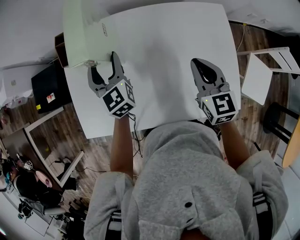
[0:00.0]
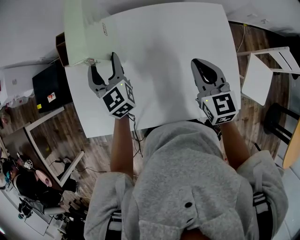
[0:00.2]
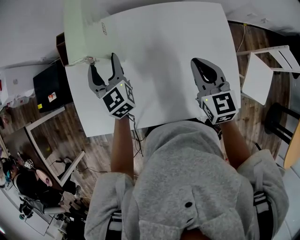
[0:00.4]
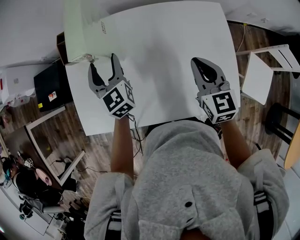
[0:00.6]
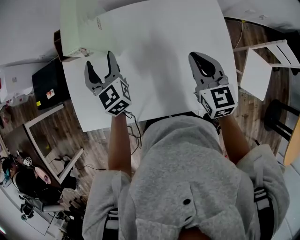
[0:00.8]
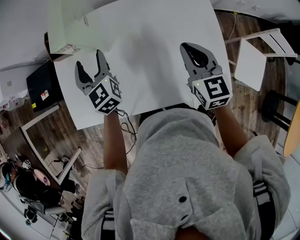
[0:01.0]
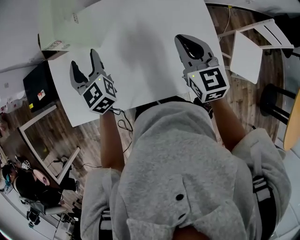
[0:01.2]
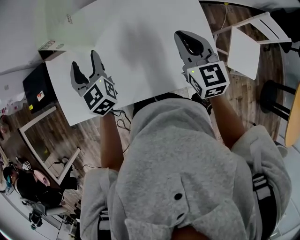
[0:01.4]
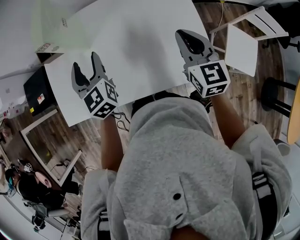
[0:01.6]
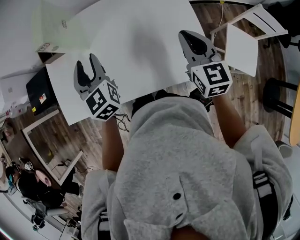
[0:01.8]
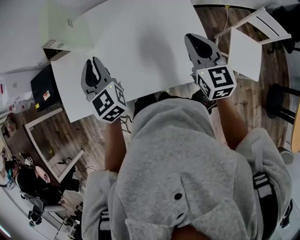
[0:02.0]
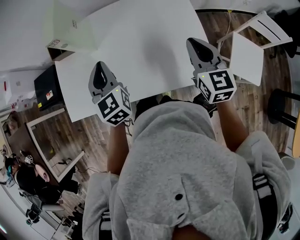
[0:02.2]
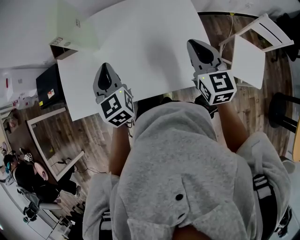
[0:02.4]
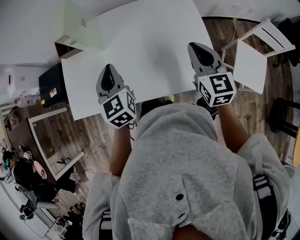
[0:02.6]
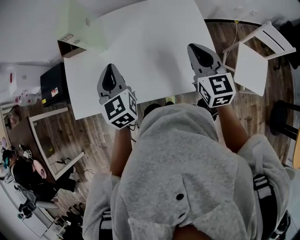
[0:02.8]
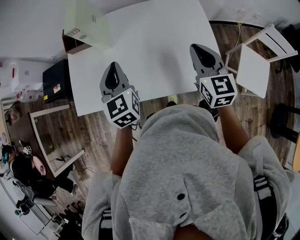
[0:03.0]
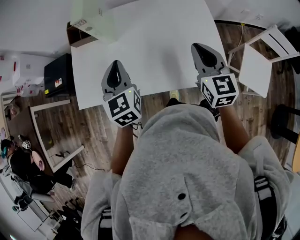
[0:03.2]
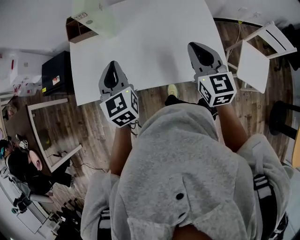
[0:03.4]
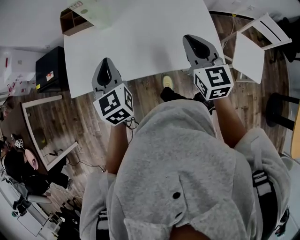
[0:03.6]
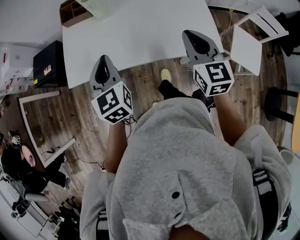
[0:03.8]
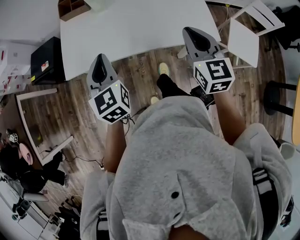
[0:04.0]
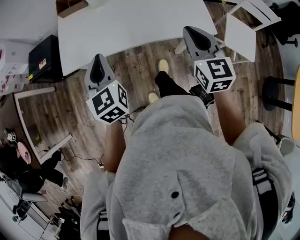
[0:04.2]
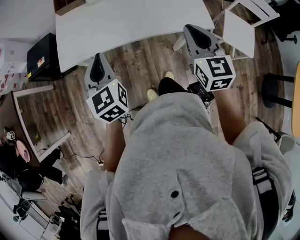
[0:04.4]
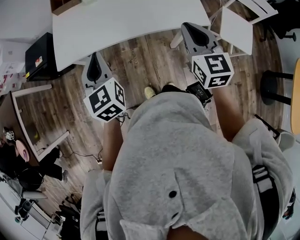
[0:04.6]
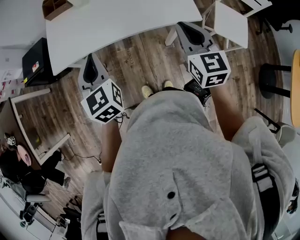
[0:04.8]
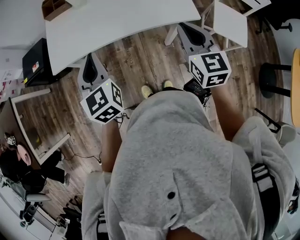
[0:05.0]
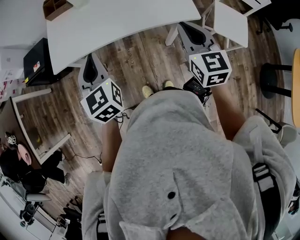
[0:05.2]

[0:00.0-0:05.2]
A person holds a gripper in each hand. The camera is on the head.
0:00.0 to 0:01.8: Both grippers move backward and to the right, about 15 cm. The left gripper closes its fingers.
0:01.8 to 0:03.4: The left gripper is displaced backward by about 10 cm, and closes its fingers. Meanwhile the right gripper goes some 10 cm to the left and backward.
0:03.4 to 0:05.2: Both grippers travel together backward, roughly 20 cm.

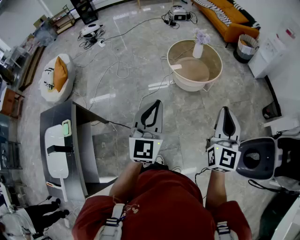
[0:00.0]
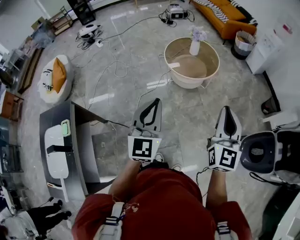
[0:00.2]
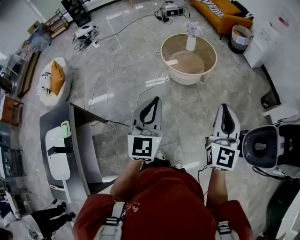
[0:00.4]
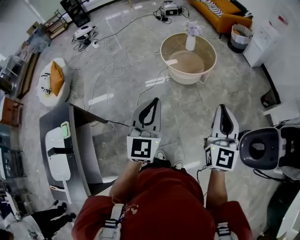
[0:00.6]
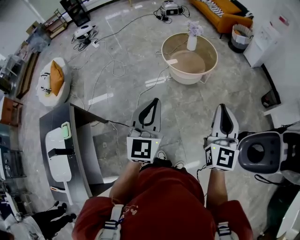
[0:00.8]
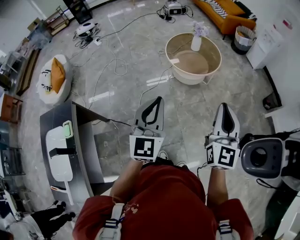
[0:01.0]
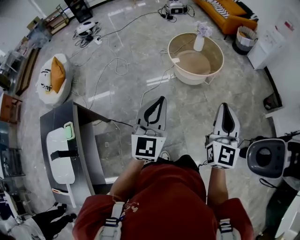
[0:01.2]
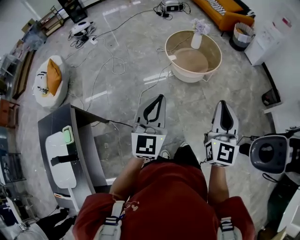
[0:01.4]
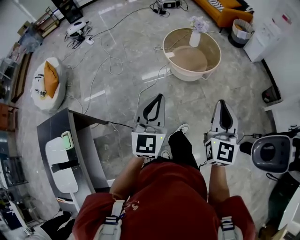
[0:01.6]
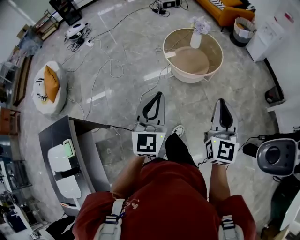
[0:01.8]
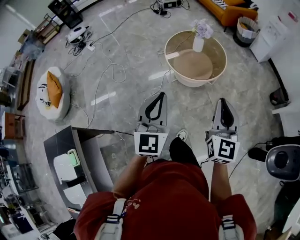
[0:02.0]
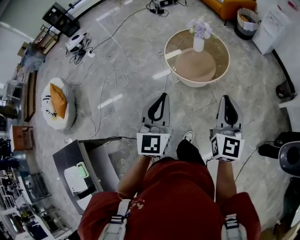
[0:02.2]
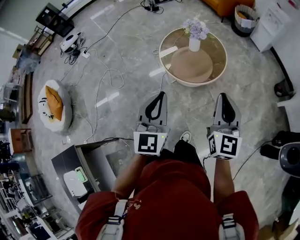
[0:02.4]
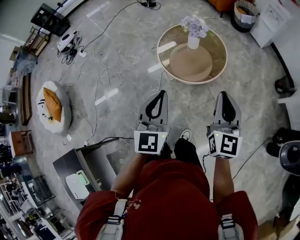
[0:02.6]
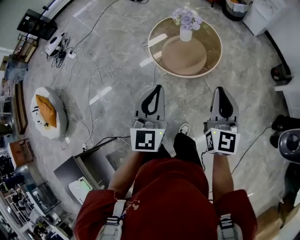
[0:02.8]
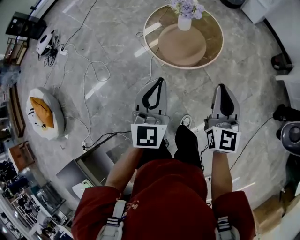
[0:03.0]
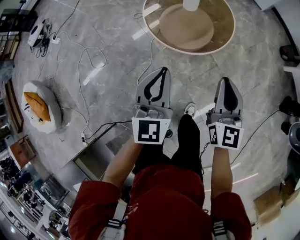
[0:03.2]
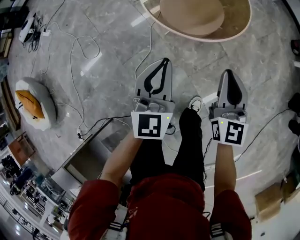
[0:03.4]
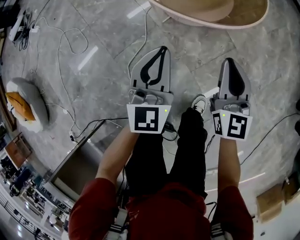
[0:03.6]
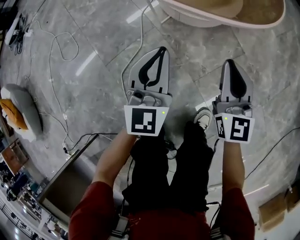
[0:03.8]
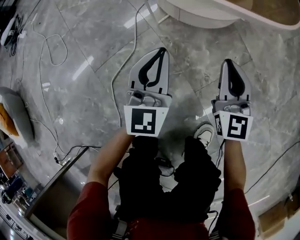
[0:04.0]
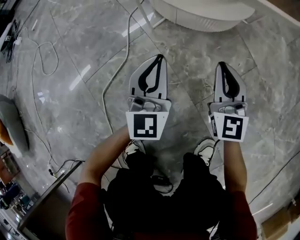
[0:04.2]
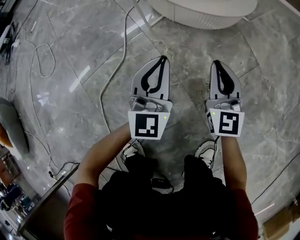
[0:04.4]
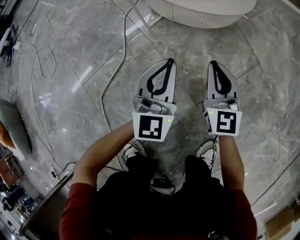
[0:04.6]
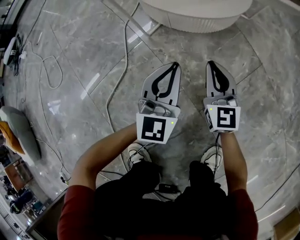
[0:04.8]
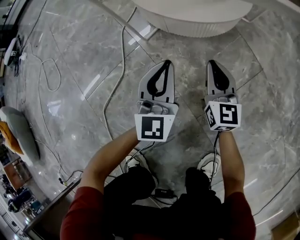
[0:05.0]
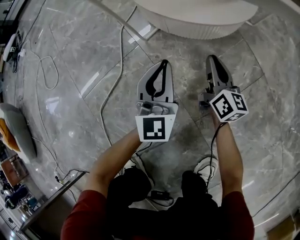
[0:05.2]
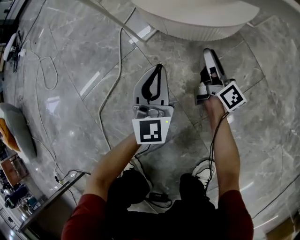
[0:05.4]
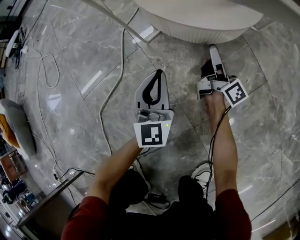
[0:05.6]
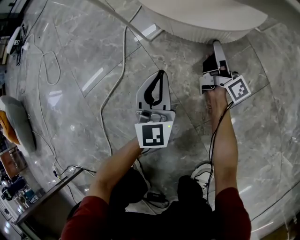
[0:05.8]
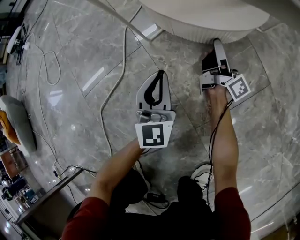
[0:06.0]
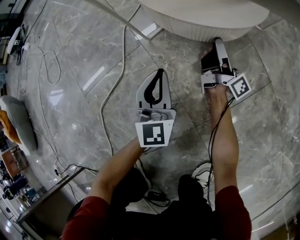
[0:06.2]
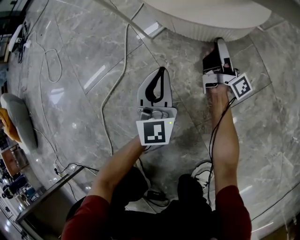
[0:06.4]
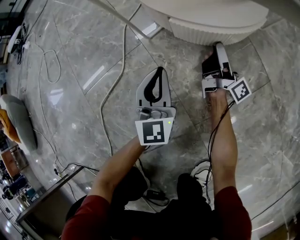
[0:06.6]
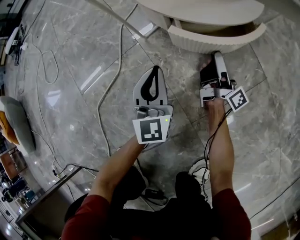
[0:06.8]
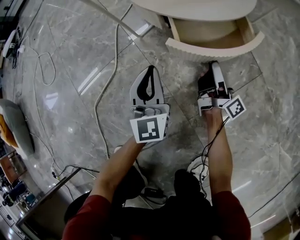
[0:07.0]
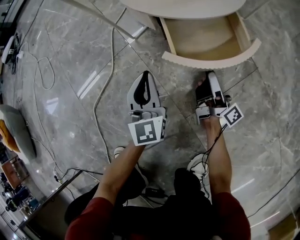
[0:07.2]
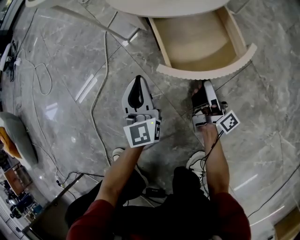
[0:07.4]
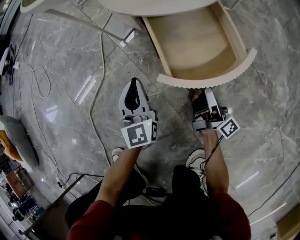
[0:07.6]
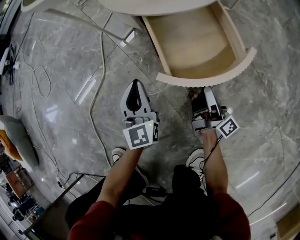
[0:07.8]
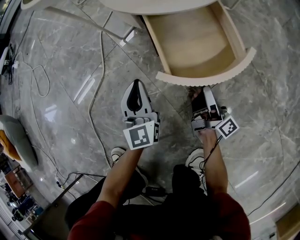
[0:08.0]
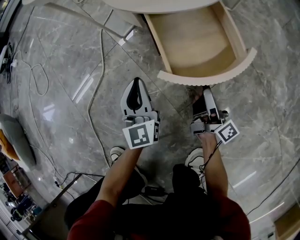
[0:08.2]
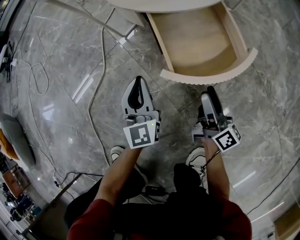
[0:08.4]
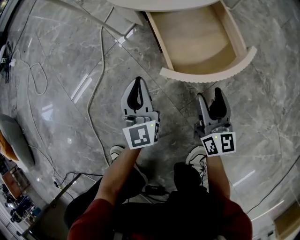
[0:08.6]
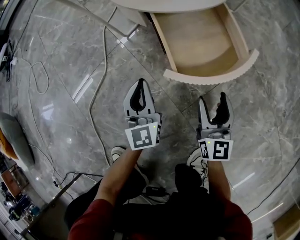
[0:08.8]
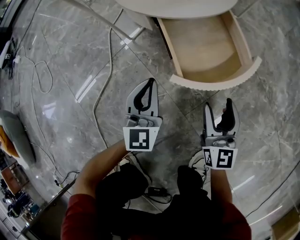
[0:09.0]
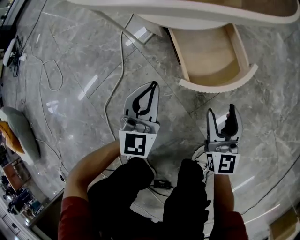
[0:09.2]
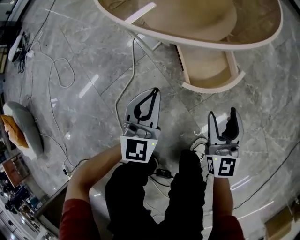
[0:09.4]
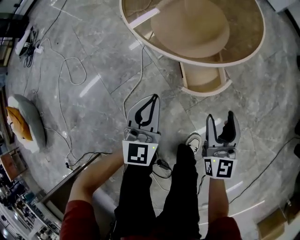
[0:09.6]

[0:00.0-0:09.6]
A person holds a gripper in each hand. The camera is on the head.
0:00.0 to 0:01.6: The left gripper goes approximately 10 cm forward and to the left, while the right gripper heads to the left, covering about 10 cm.
0:01.6 to 0:03.2: The two grippers go roughly 40 cm forward and downward.
0:03.2 to 0:04.8: Both grippers move downward, some 70 cm.
0:04.8 to 0:06.4: The right gripper heads forward and downward, covering about 15 cm, rotates around the line of its fingers by some 80 degrees, clockwise from behind, and opens; the left gripper is displaced downward by some 5 cm, and turns by roughly 20 degrees.
0:06.4 to 0:08.0: The right gripper shifts roughly 20 cm backward. The left gripper heads backward, covering some 5 cm.
0:08.0 to 0:09.6: Both grippers travel together upward, approximately 40 cm. The right gripper twists approximately 70 degrees counterclockwise, seen from behind, while the left gripper changes its angle by some 20 degrees.

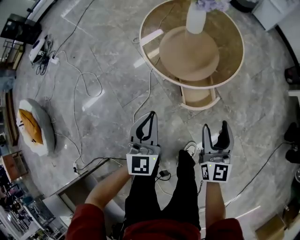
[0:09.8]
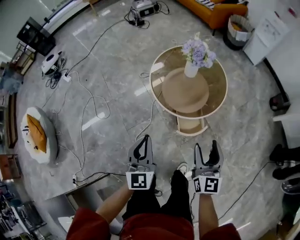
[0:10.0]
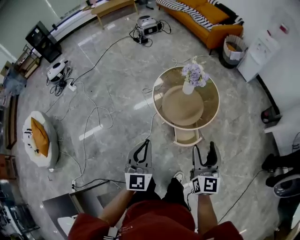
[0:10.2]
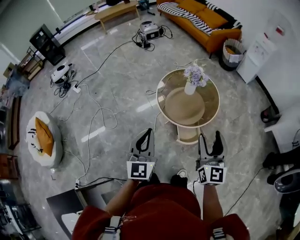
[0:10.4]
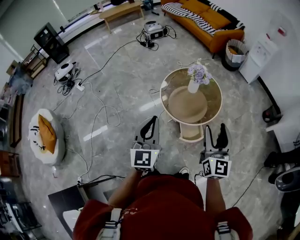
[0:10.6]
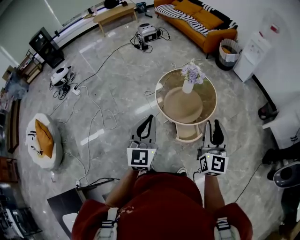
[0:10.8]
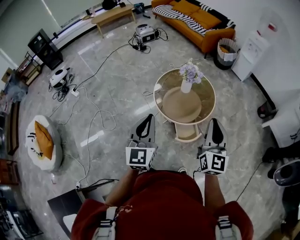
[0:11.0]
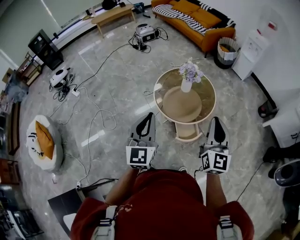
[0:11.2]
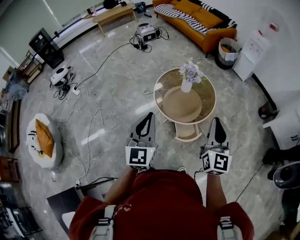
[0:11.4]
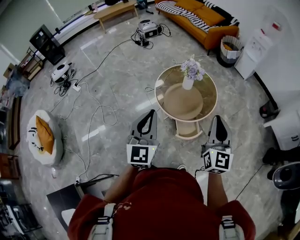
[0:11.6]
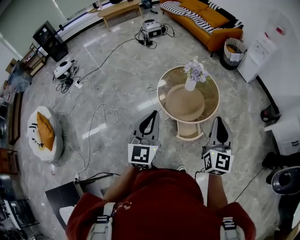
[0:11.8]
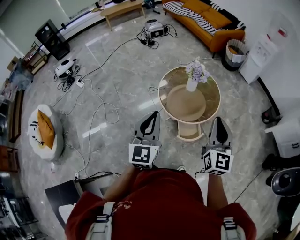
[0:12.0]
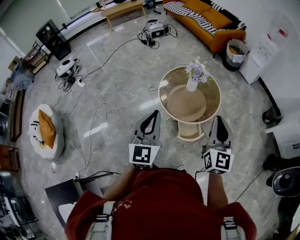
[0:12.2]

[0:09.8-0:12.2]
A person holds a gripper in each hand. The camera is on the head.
0:09.8 to 0:11.0: The two grippers go about 40 cm upward. The right gripper closes.
0:11.0 to 0:12.2: There are only small adjustments of the grippers.

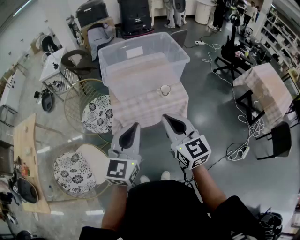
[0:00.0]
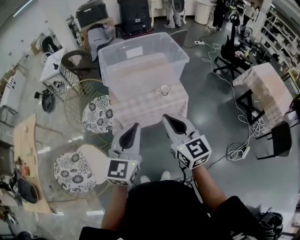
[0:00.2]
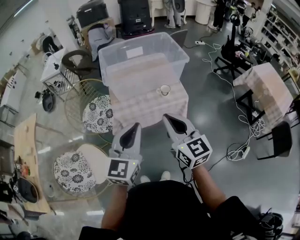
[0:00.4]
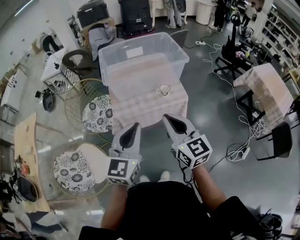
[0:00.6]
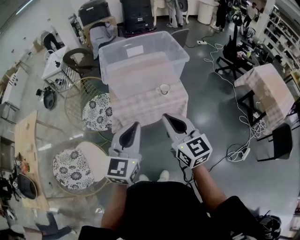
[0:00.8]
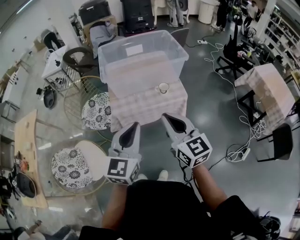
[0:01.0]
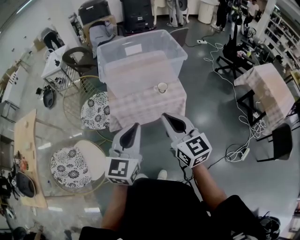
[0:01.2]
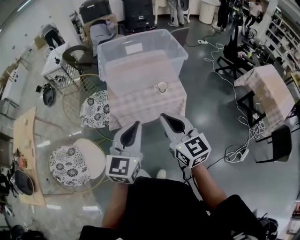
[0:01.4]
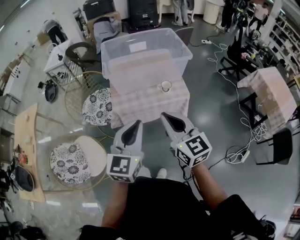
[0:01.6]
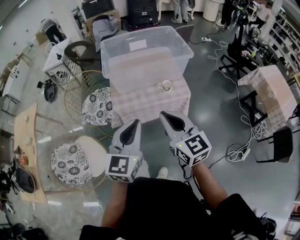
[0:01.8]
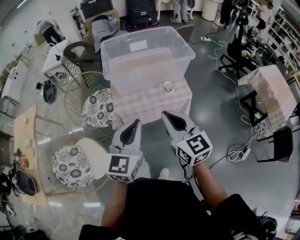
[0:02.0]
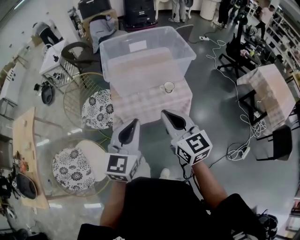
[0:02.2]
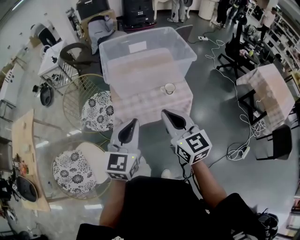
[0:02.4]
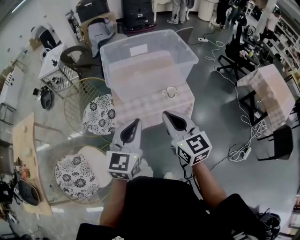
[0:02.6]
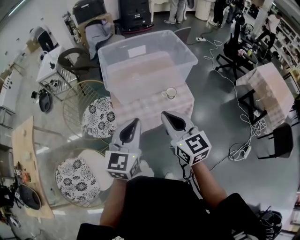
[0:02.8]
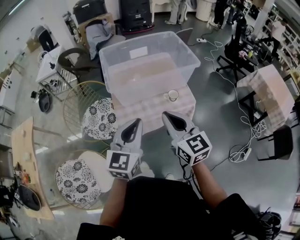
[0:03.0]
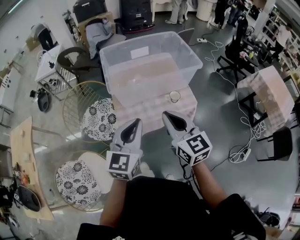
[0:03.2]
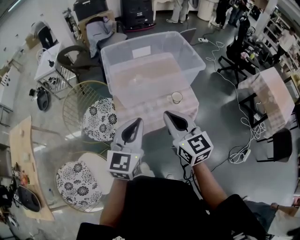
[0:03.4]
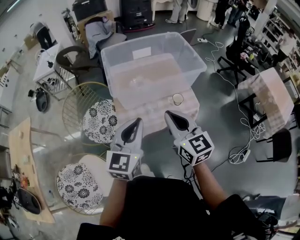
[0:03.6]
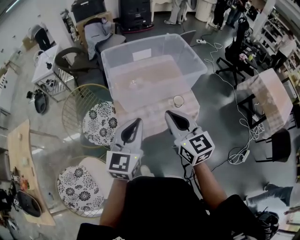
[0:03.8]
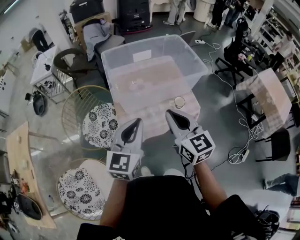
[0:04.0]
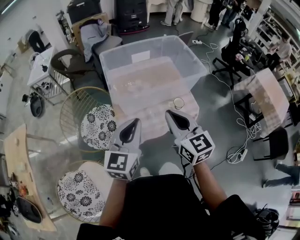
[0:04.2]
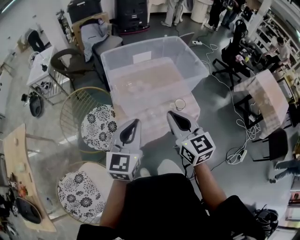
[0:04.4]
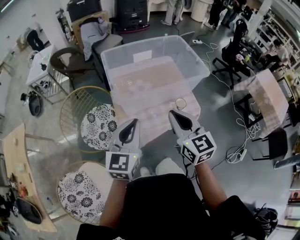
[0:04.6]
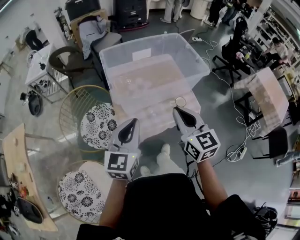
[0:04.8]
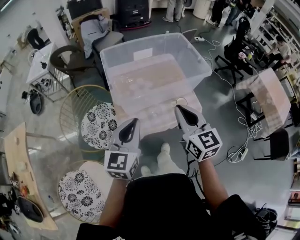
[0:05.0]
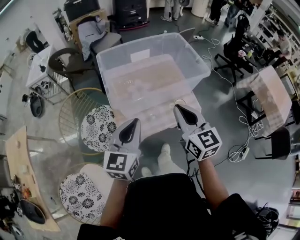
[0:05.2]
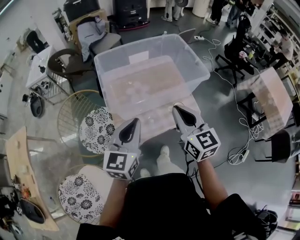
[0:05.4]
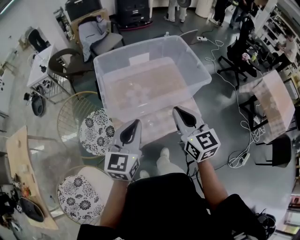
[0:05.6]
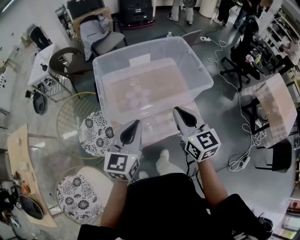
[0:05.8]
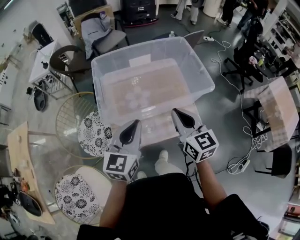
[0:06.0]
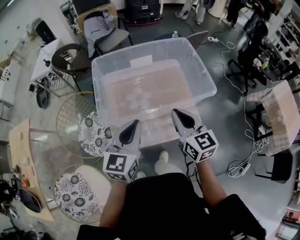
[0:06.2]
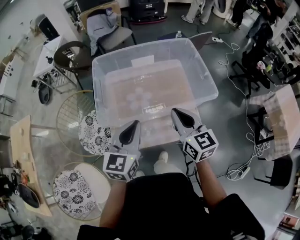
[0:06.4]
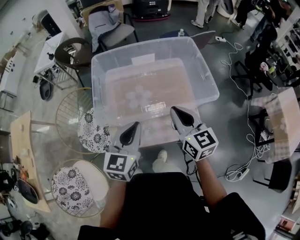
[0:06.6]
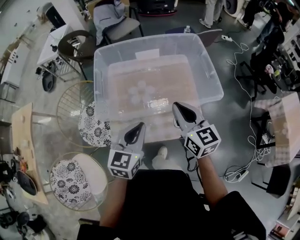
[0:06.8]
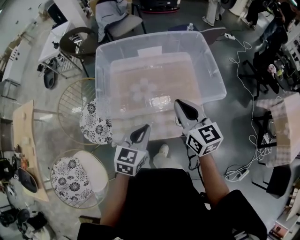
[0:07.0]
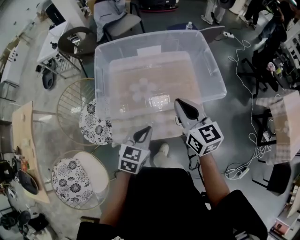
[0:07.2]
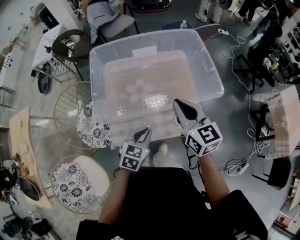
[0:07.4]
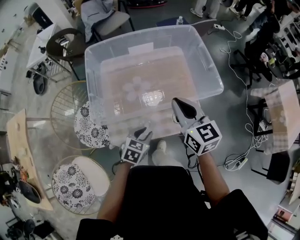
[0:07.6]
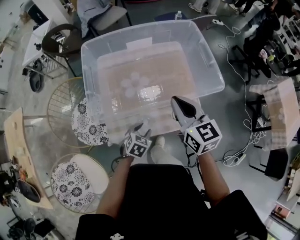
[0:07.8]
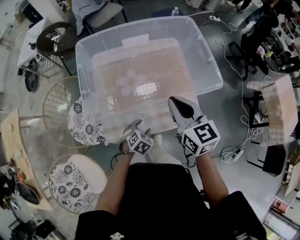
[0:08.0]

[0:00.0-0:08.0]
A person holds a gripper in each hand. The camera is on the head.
0:00.0 to 0:01.6: There are only small adjustments of the grippers.
0:01.6 to 0:03.2: Both grippers travel together forward and to the left, about 15 cm.
0:03.2 to 0:04.8: The left gripper shifts some 10 cm forward and to the left. Meanwhile the right gripper is displaced forward by about 10 cm.
0:04.8 to 0:06.4: Both grippers move forward and to the right, roughly 20 cm.
0:06.4 to 0:08.0: The left gripper is displaced downward by some 30 cm, tilts its fingers roughly 50 degrees downward, and opens. The right gripper shifts by approximately 5 cm.
